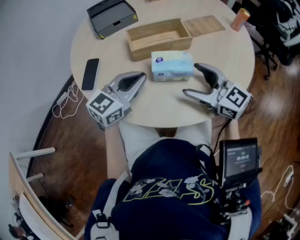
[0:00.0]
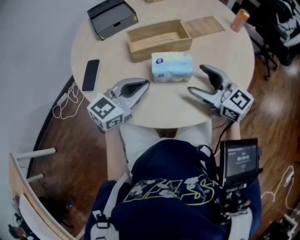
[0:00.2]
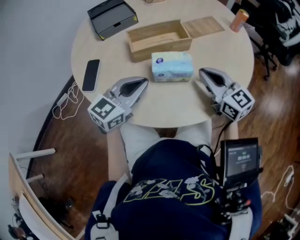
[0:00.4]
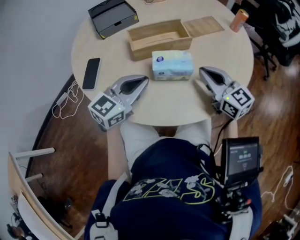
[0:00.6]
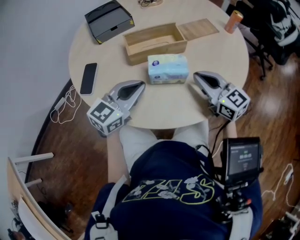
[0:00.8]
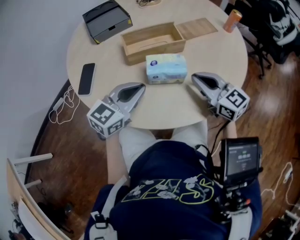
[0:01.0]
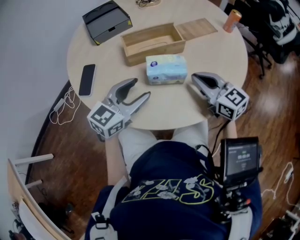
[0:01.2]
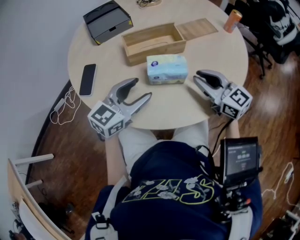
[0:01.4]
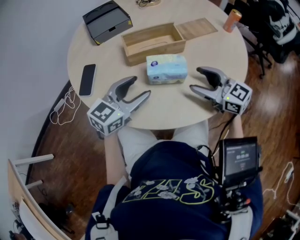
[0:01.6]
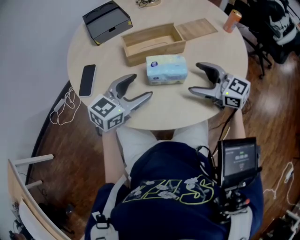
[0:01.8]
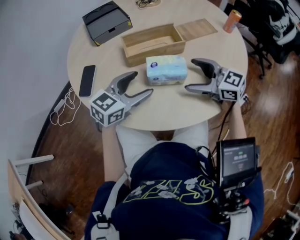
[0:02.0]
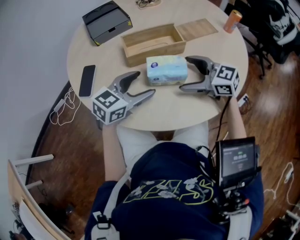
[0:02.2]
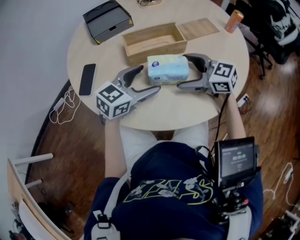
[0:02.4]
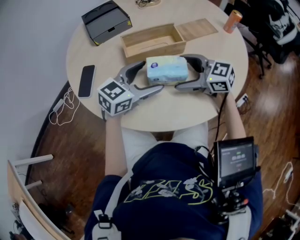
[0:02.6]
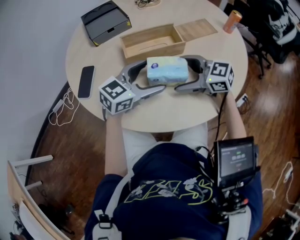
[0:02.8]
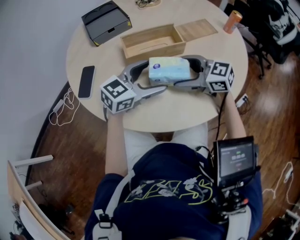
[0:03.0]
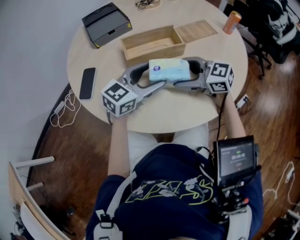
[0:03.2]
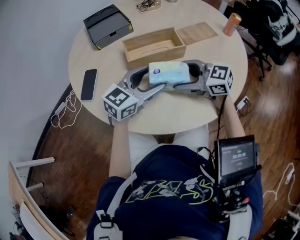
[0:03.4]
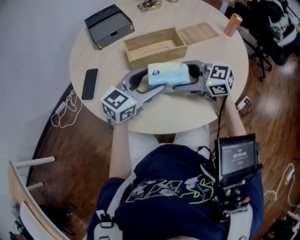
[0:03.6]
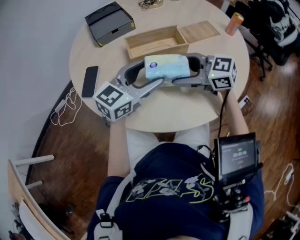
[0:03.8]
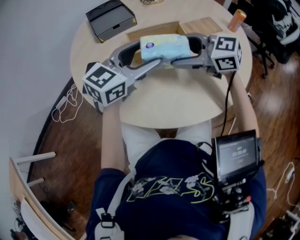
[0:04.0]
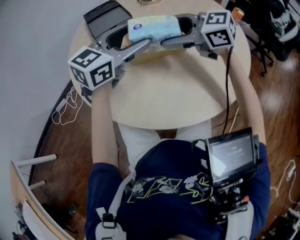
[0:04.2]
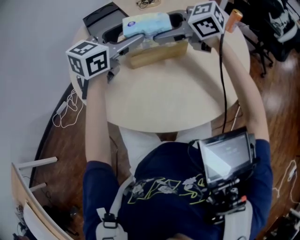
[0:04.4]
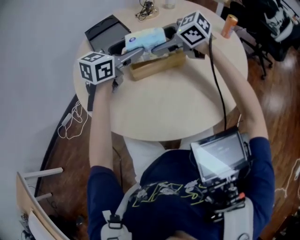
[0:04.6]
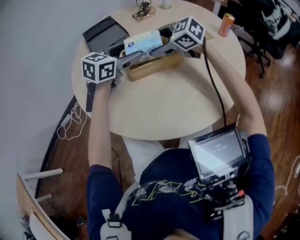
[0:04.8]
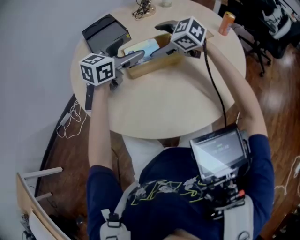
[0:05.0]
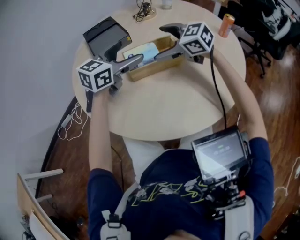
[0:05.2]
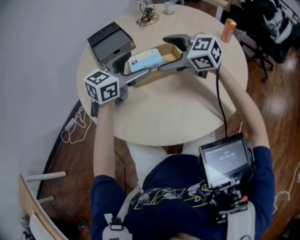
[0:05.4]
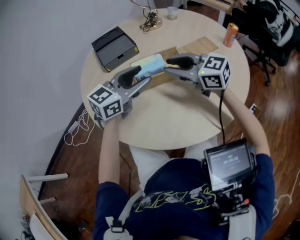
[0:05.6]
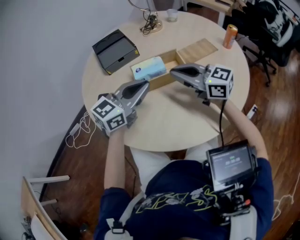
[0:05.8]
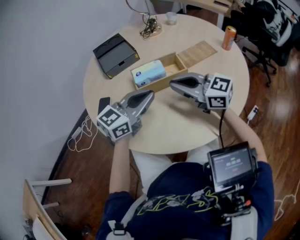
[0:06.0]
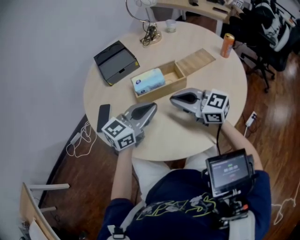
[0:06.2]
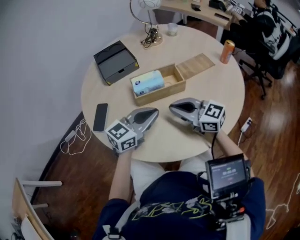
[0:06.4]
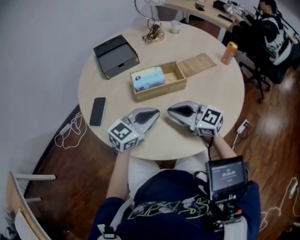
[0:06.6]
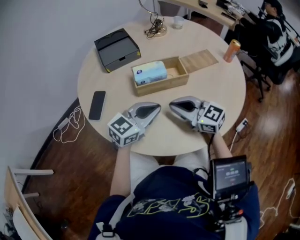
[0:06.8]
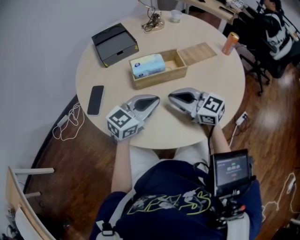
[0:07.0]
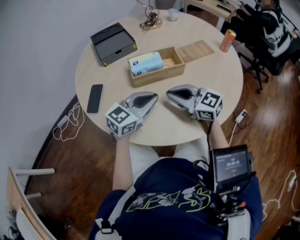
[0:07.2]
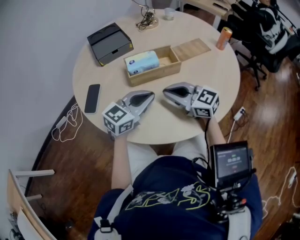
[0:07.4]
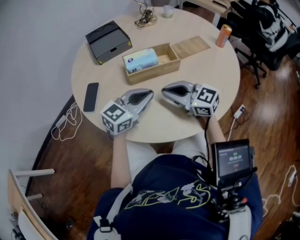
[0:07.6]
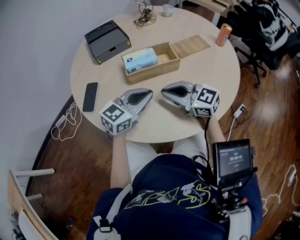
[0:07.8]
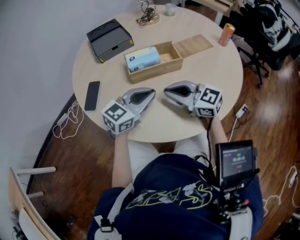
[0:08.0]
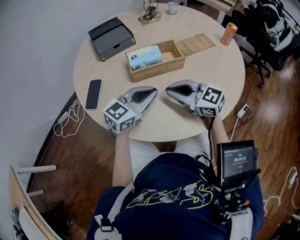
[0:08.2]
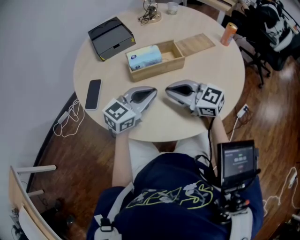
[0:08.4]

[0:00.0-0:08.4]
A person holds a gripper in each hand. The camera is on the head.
0:00.0 to 0:01.4: The left gripper opens, while the right gripper closes up.
0:01.4 to 0:02.8: The right gripper changes place by some 10 cm, rotates some 30 degrees, and opens; the left gripper ends up approximately 5 cm from where it was, and opens its fingers.
0:02.8 to 0:04.2: The two grippers go approximately 15 cm upward.
0:04.2 to 0:05.6: The left gripper travels forward and back again, approximately 5 cm each way; the right gripper travels forward and back again, approximately 5 cm each way, and closes.
0:05.6 to 0:07.0: Both grippers travel together downward and backward, some 10 cm. The left gripper closes up.
0:07.0 to 0:08.4: Neither gripper changes place.

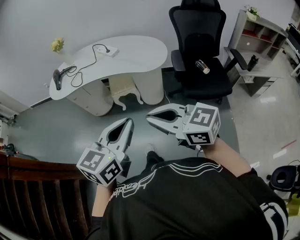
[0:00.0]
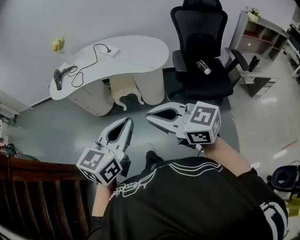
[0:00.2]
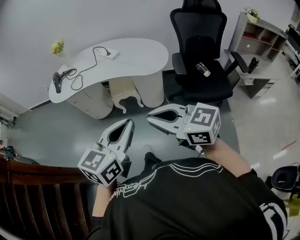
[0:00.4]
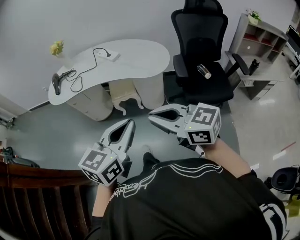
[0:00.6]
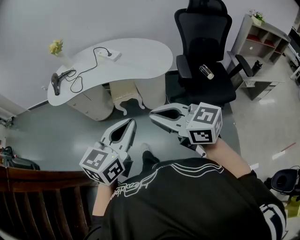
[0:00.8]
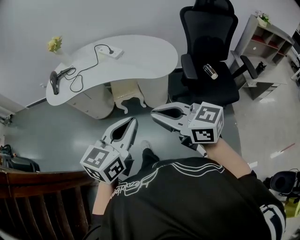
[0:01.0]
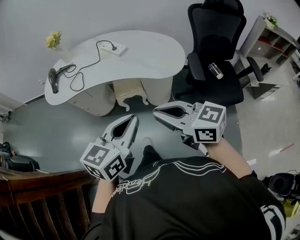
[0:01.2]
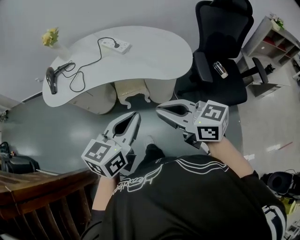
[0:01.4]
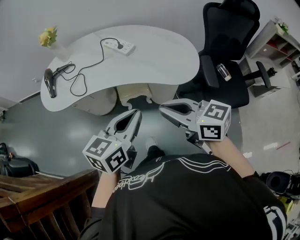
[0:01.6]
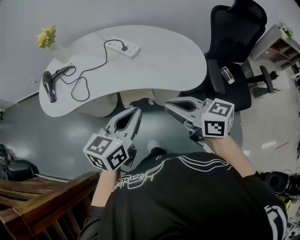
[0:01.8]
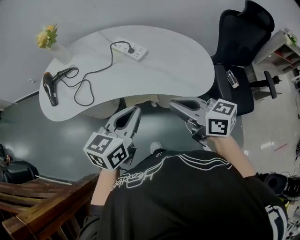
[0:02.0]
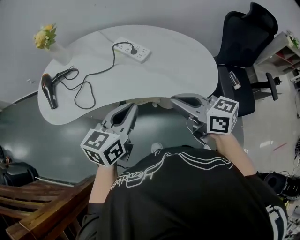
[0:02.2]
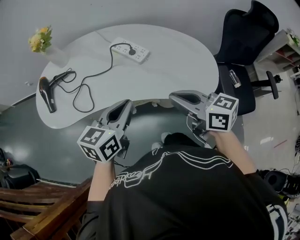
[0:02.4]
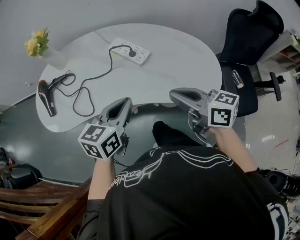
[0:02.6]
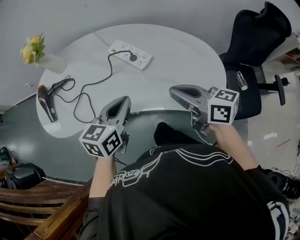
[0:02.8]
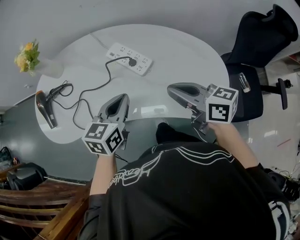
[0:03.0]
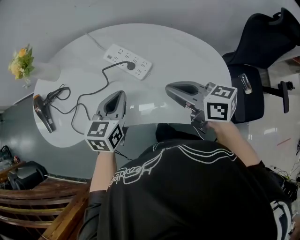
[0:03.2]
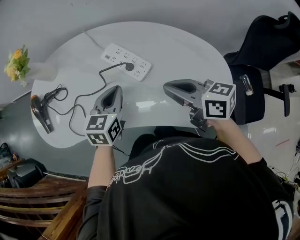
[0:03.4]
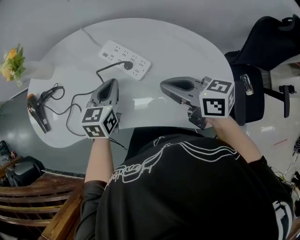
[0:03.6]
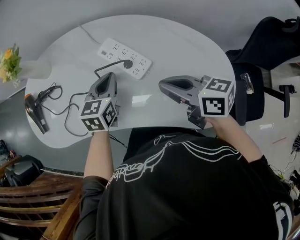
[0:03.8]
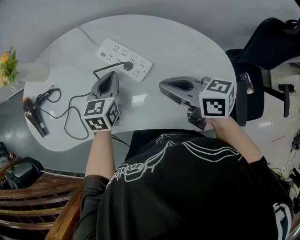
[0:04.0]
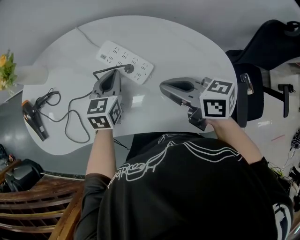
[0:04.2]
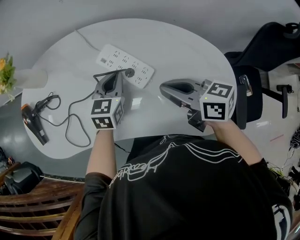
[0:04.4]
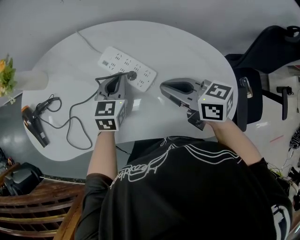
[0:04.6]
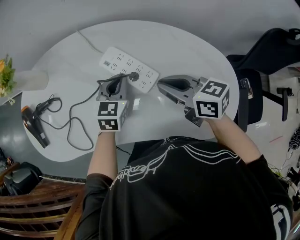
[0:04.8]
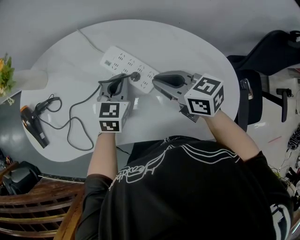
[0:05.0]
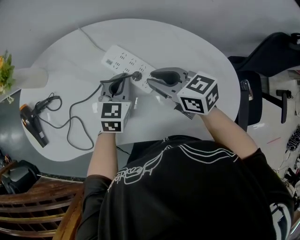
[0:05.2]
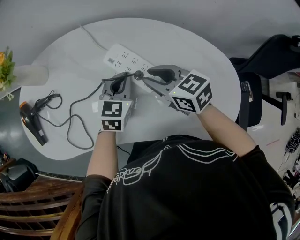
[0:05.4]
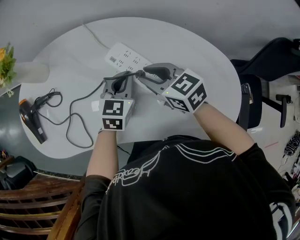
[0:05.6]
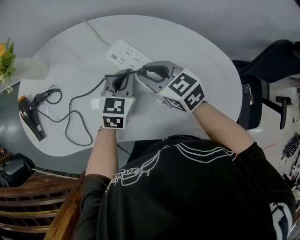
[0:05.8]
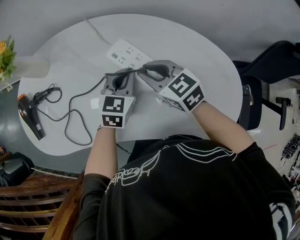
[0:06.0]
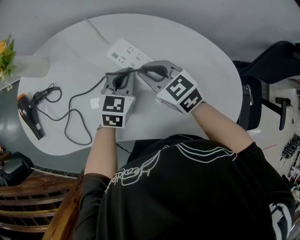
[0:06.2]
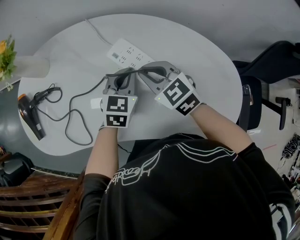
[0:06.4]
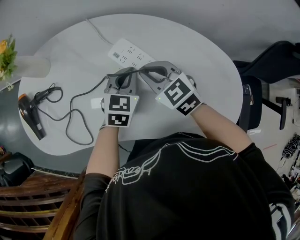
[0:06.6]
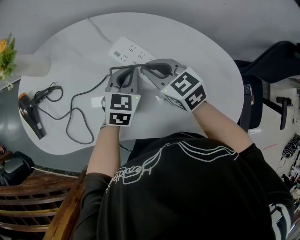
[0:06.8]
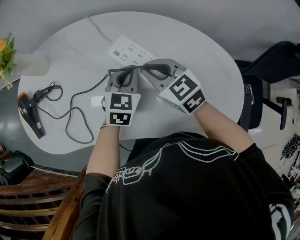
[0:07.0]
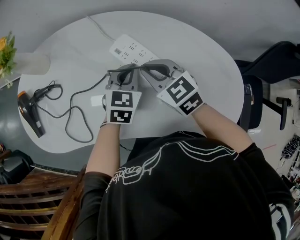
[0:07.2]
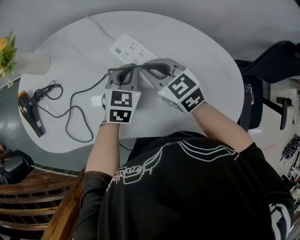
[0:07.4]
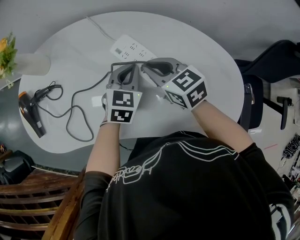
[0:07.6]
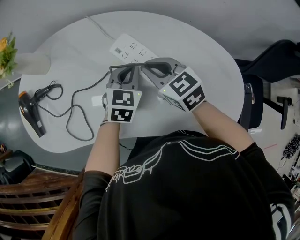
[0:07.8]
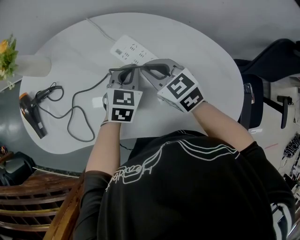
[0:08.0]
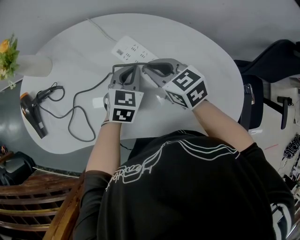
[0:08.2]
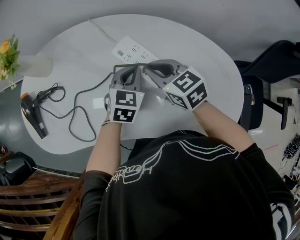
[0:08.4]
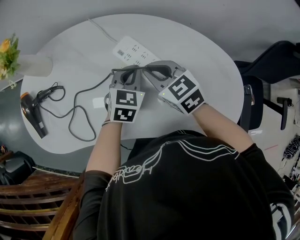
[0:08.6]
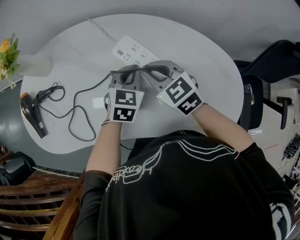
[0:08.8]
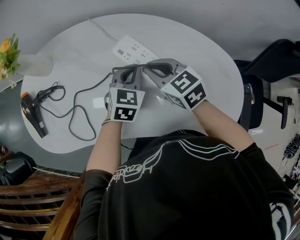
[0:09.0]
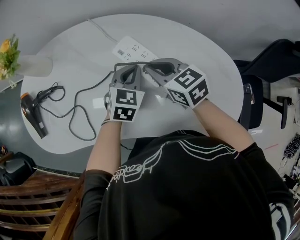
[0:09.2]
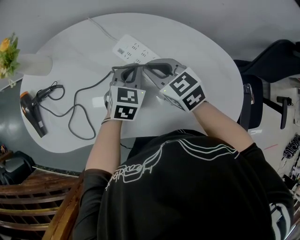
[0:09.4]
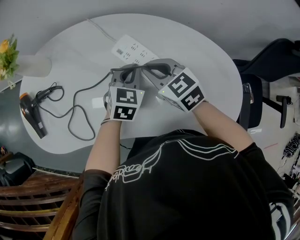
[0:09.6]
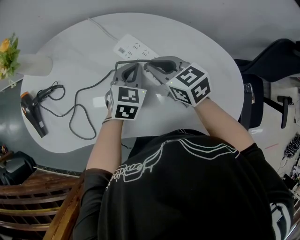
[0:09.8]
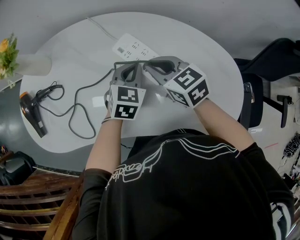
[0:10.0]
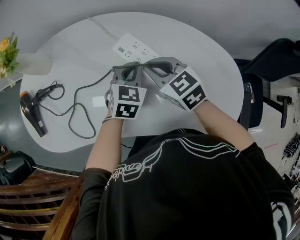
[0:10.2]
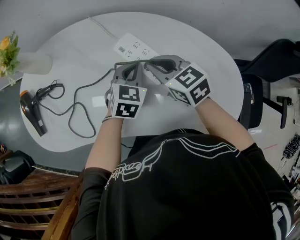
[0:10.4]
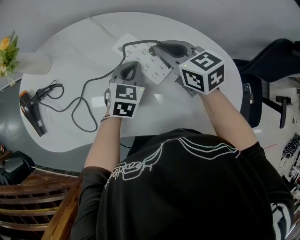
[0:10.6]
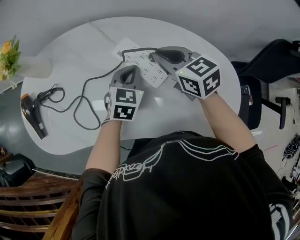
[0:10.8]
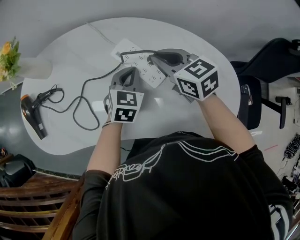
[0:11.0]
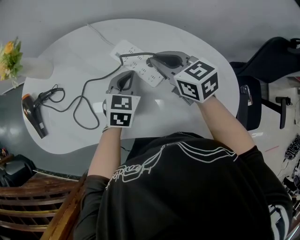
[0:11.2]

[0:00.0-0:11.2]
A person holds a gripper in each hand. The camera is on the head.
0:00.0 to 0:01.6: The two grippers go some 30 cm forward.
0:01.6 to 0:03.2: The two grippers go approximately 40 cm forward.
0:03.2 to 0:04.8: The two grippers go some 15 cm forward and downward.
0:04.8 to 0:06.4: The right gripper travels to the left and forward by roughly 10 cm, and rotates about 40 degrees.
0:06.4 to 0:09.6: There are only small adjustments of the grippers.
0:09.6 to 0:11.2: The right gripper moves approximately 5 cm.

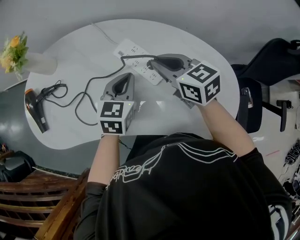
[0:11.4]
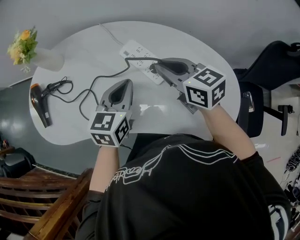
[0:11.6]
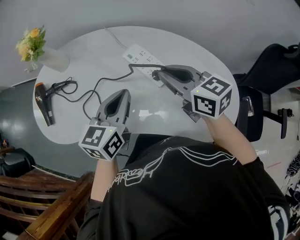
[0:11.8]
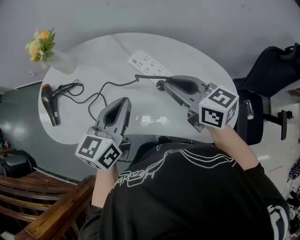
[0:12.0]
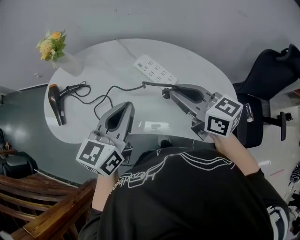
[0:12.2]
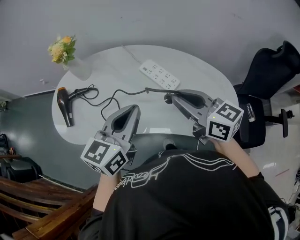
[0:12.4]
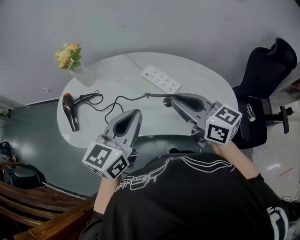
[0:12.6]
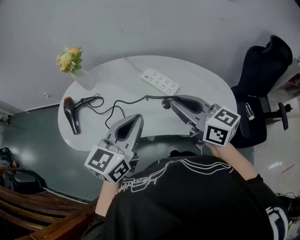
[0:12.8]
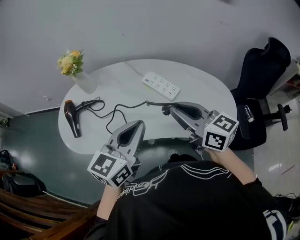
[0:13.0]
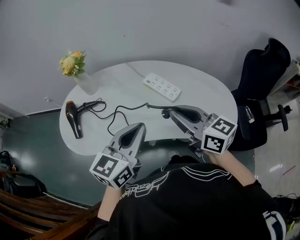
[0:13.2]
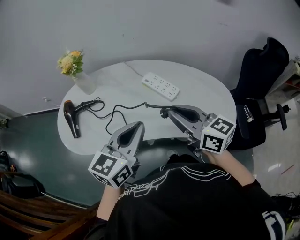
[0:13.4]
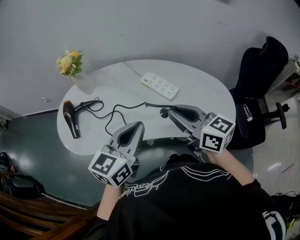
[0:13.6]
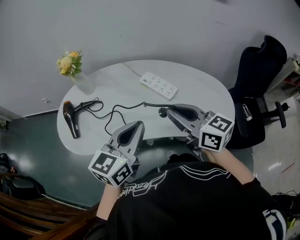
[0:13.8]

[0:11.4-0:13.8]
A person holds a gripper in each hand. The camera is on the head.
0:11.4 to 0:12.6: The right gripper goes about 25 cm backward and upward; the left gripper travels upward, backward and to the left by roughly 30 cm, and swivels roughly 20 degrees.
0:12.6 to 0:13.8: The grippers stay close to where they were, moving slightly.

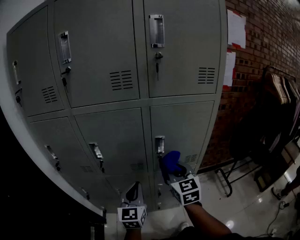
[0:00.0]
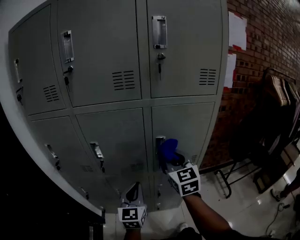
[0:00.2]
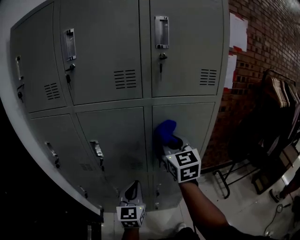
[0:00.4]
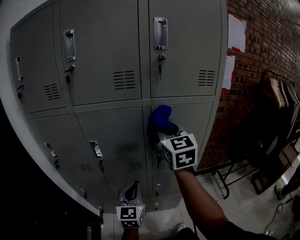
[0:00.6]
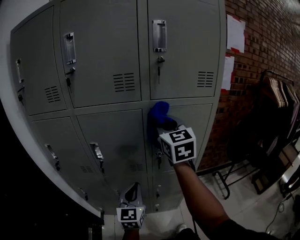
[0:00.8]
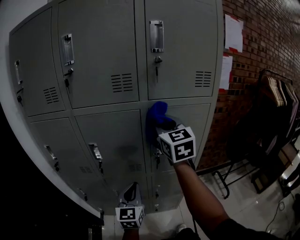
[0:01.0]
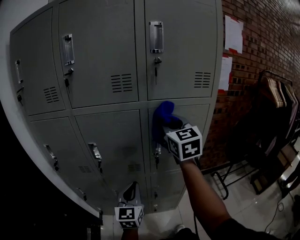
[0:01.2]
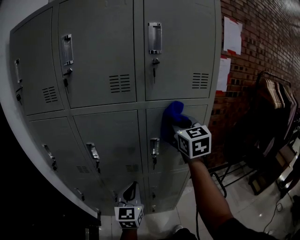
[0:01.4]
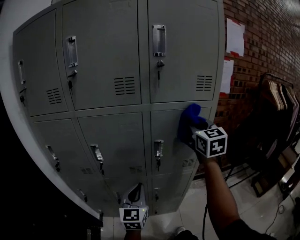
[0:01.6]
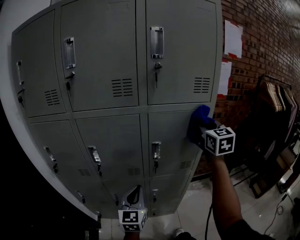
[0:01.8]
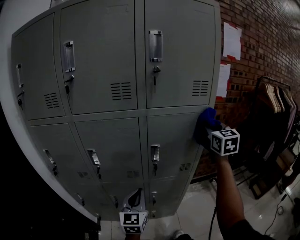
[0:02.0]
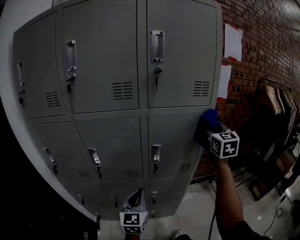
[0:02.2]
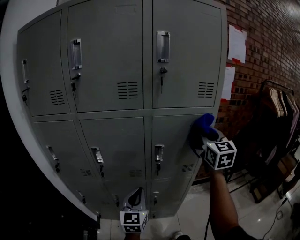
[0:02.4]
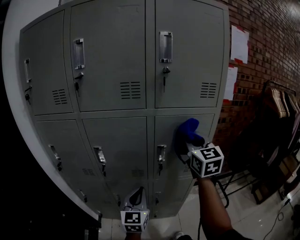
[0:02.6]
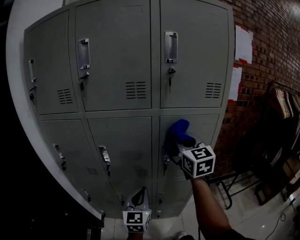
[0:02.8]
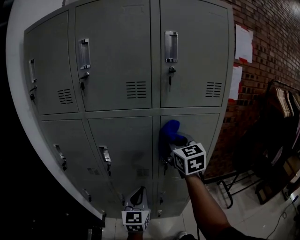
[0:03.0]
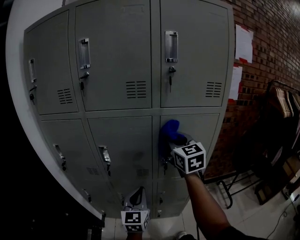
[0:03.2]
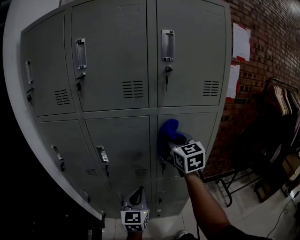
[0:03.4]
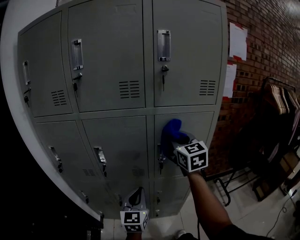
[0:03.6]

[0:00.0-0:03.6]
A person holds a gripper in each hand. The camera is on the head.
0:00.0 to 0:01.8: The right gripper heads upward, to the right and forward, covering about 25 cm.
0:01.8 to 0:03.6: The right gripper moves to the left, roughly 15 cm.
